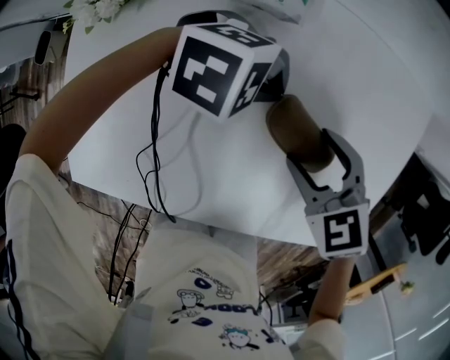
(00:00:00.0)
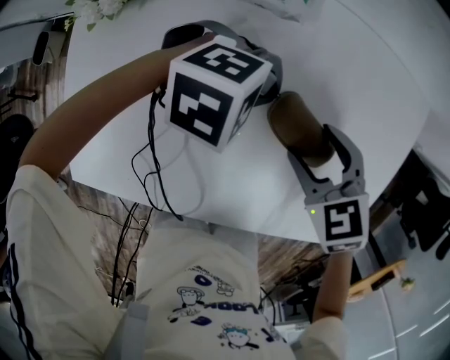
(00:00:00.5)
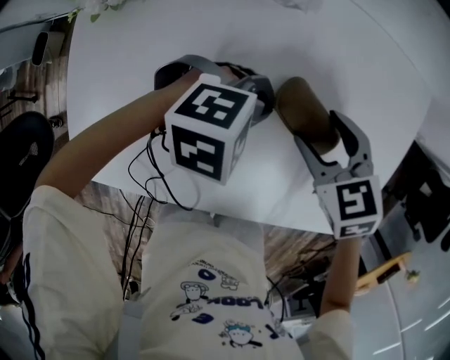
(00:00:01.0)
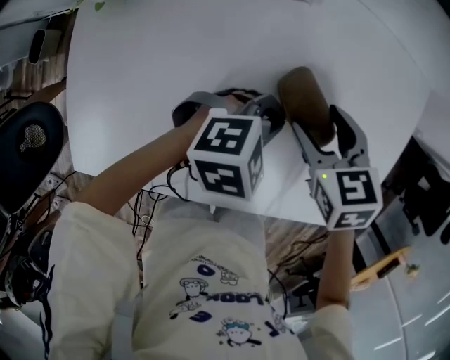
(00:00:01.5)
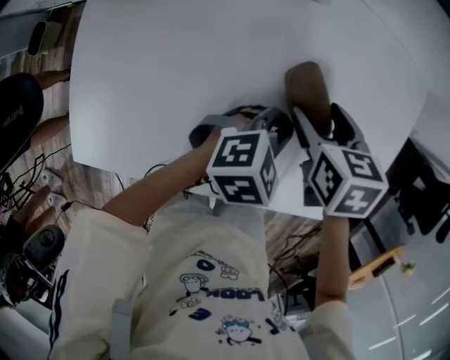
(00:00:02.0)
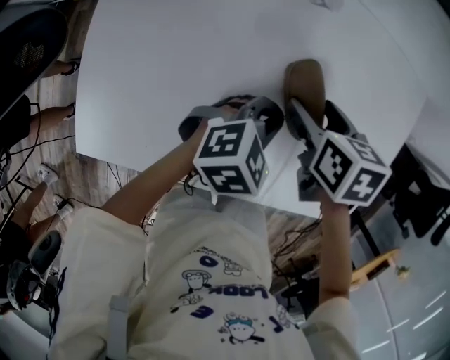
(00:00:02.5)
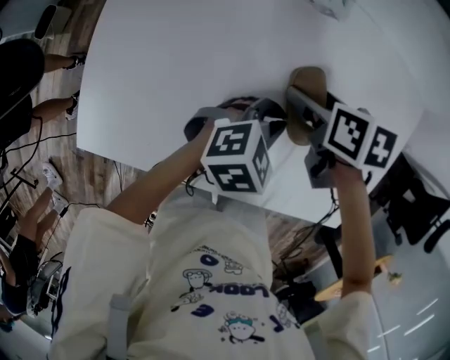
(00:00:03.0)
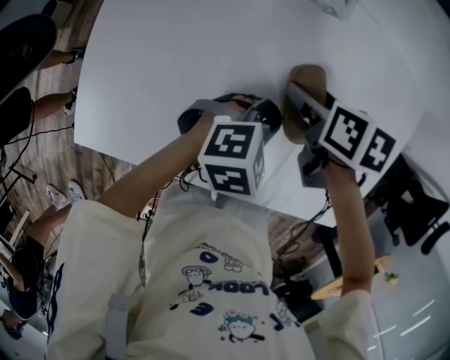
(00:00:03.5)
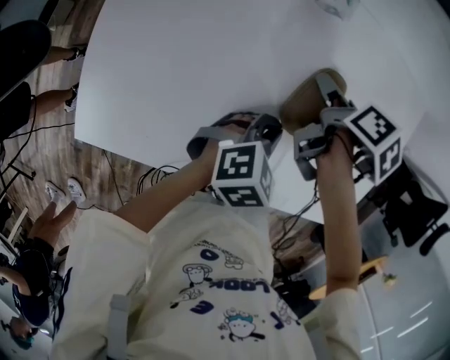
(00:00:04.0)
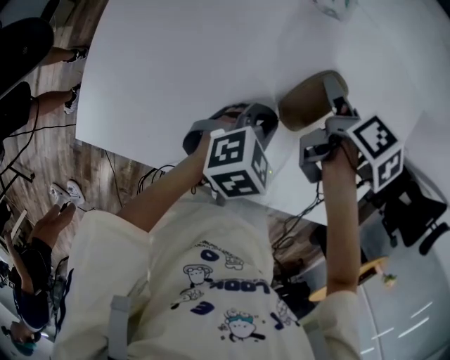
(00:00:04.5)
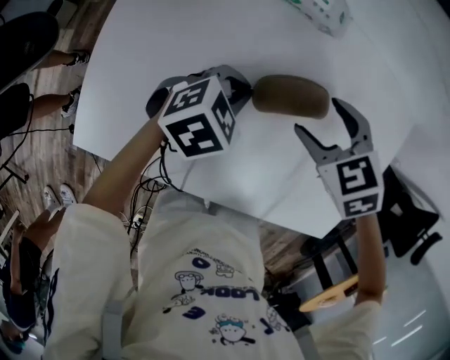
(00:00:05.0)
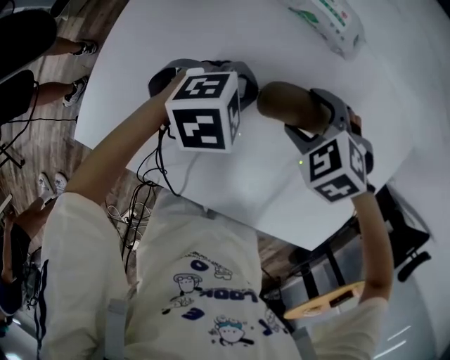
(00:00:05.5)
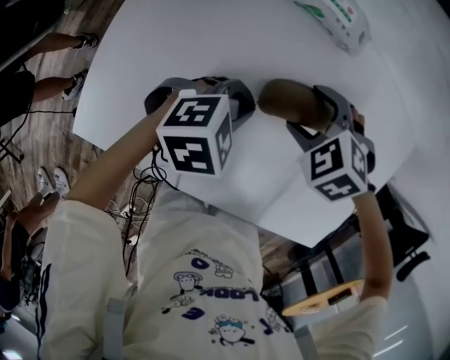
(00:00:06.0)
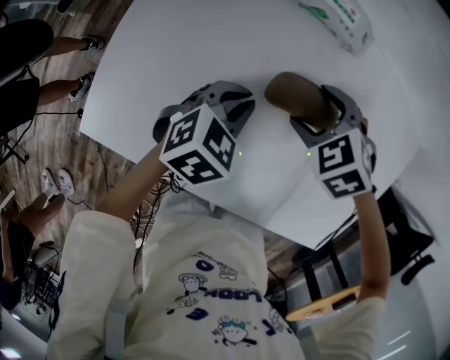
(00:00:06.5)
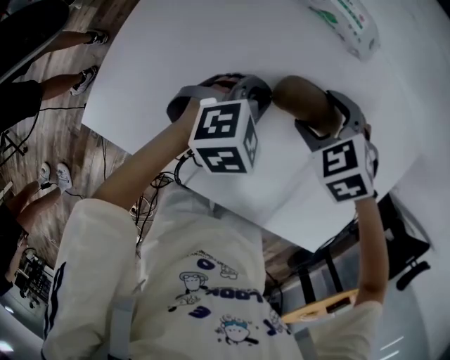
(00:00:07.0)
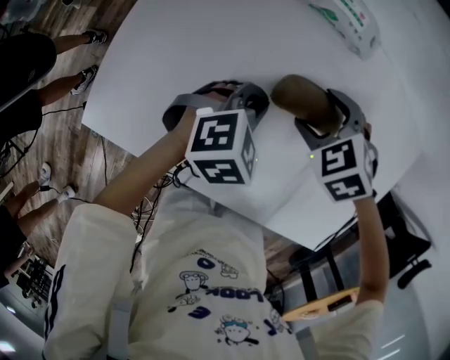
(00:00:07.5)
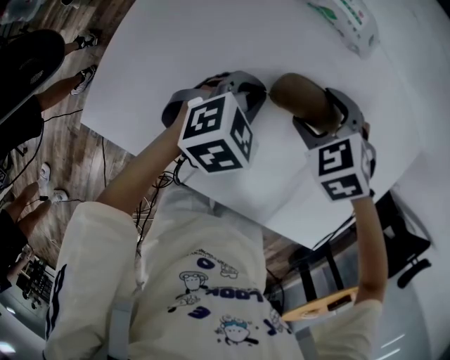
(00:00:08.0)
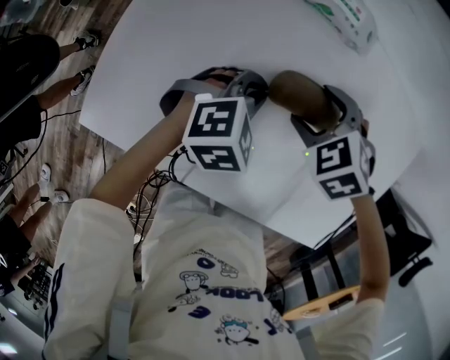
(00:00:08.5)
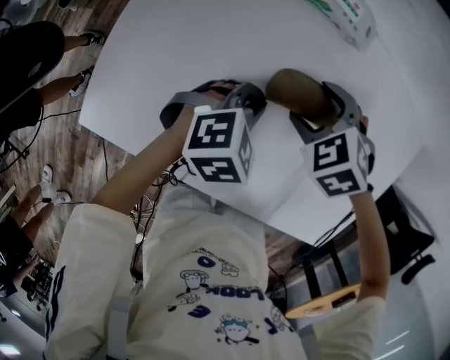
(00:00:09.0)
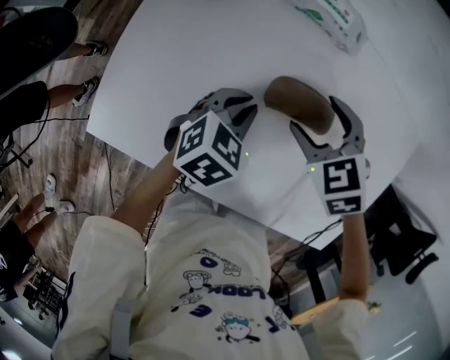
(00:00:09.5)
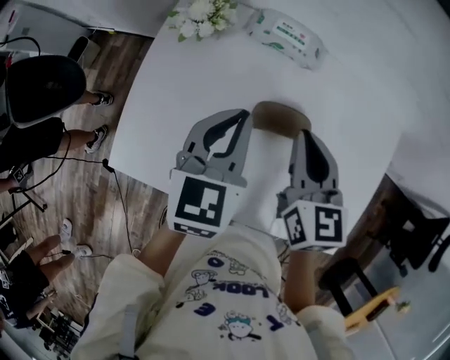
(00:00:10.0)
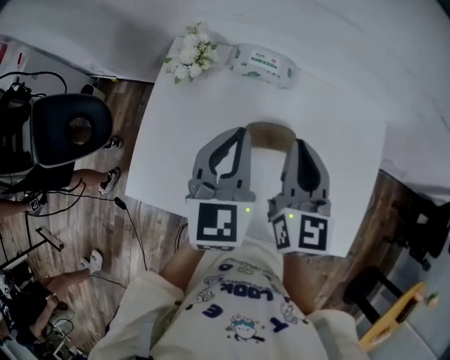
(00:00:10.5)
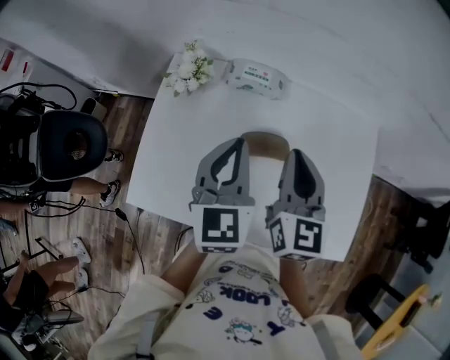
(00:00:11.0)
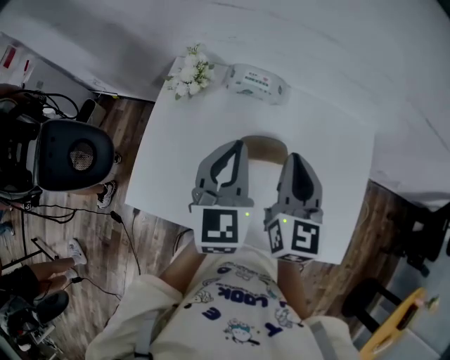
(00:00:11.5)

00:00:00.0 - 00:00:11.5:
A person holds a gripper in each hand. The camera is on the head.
00:00:00.0 - 00:00:02.0: The right gripper swivels roughly 40 degrees; the left gripper shifts by some 15 cm, and turns by some 50 degrees.
00:00:02.0 - 00:00:04.0: The right gripper shifts by some 5 cm, and rolls clockwise, seen from behind, by about 50 degrees; the left gripper moves to the left, some 5 cm.
00:00:04.0 - 00:00:06.0: The left gripper moves approximately 10 cm. The right gripper ends up approximately 10 cm from where it was, and twists roughly 120 degrees counterclockwise, seen from behind.
00:00:07.5 - 00:00:09.5: The left gripper turns by about 20 degrees.
00:00:09.5 - 00:00:11.5: The two grippers go about 25 cm upward. The left gripper angles its fingers upward, by roughly 30 degrees. Meanwhile the right gripper tilts its fingers about 50 degrees upward, and closes.

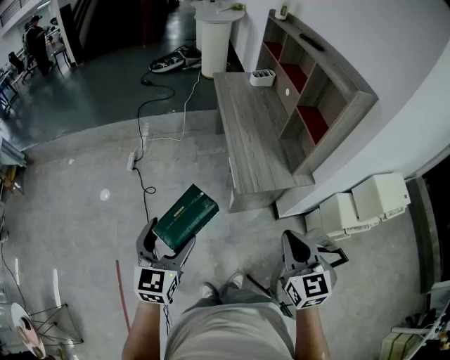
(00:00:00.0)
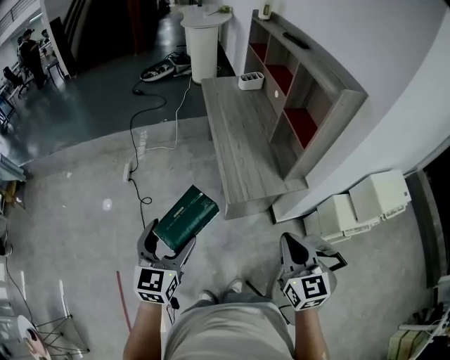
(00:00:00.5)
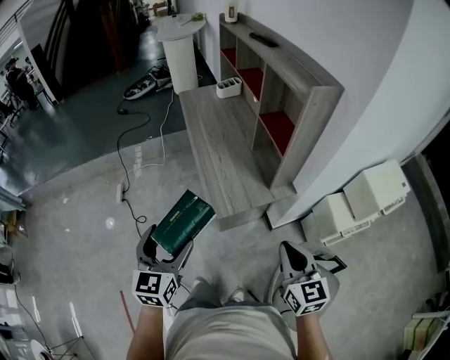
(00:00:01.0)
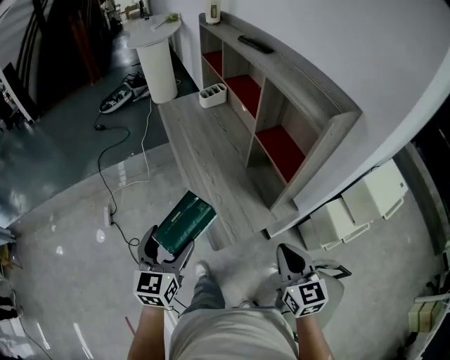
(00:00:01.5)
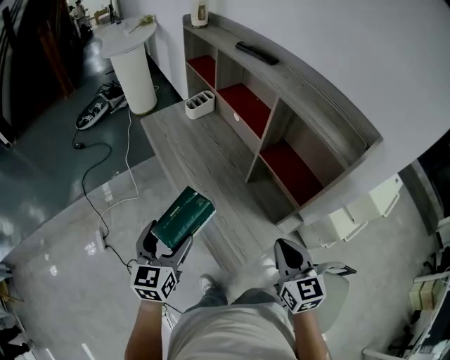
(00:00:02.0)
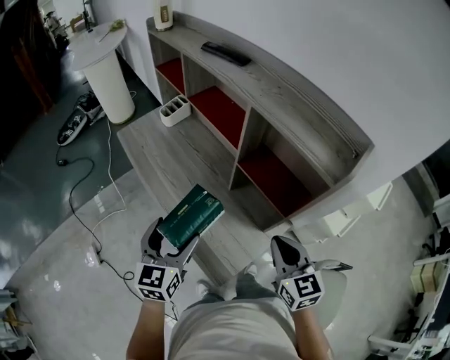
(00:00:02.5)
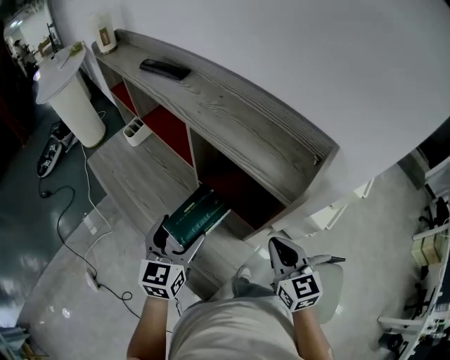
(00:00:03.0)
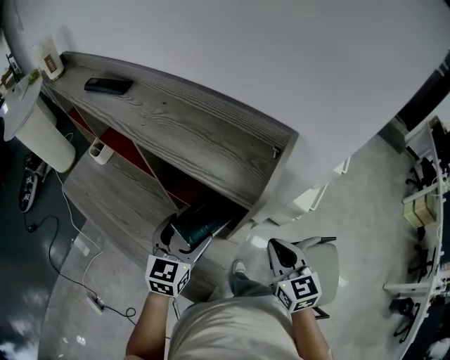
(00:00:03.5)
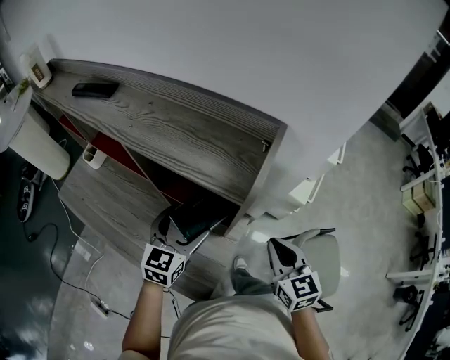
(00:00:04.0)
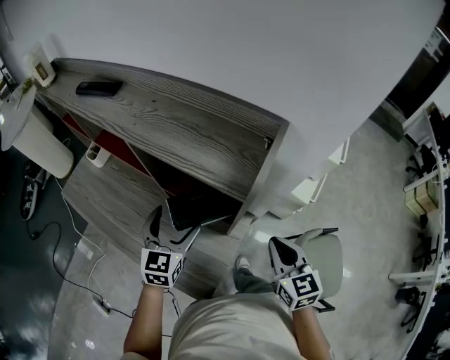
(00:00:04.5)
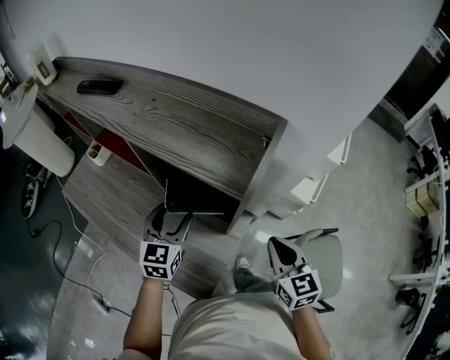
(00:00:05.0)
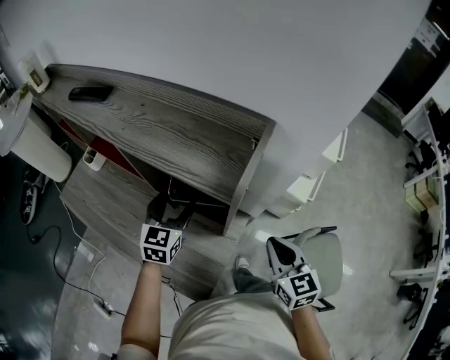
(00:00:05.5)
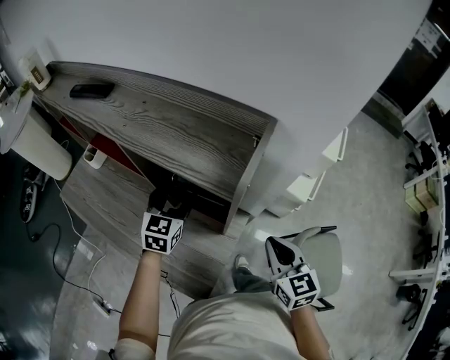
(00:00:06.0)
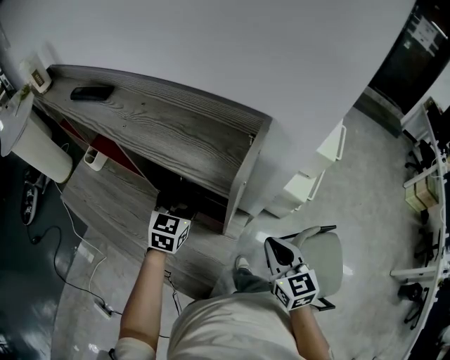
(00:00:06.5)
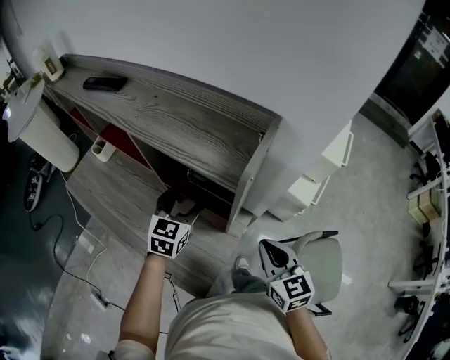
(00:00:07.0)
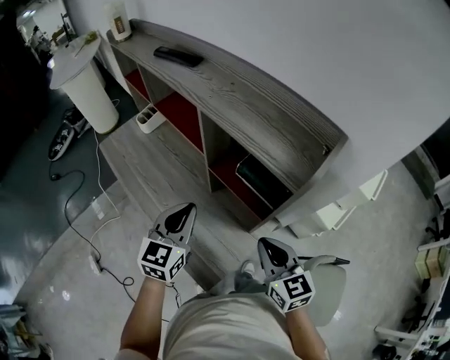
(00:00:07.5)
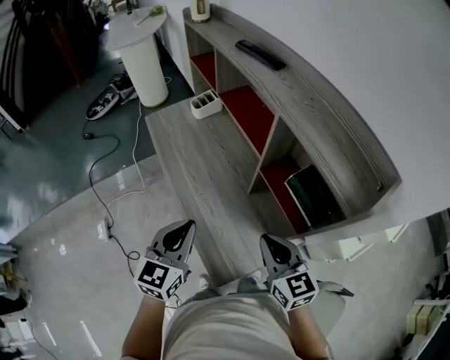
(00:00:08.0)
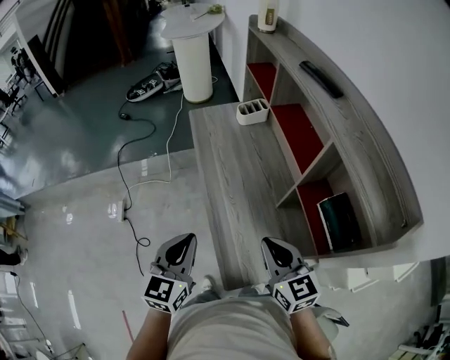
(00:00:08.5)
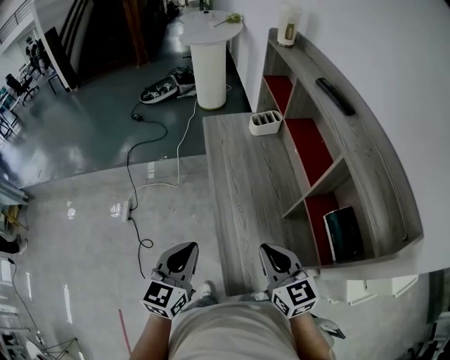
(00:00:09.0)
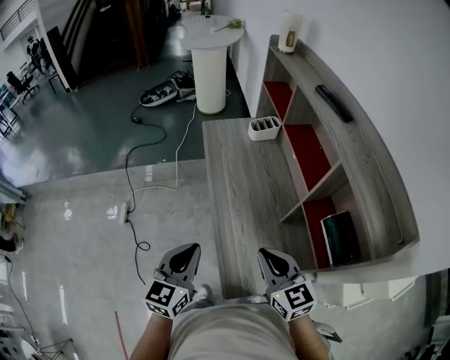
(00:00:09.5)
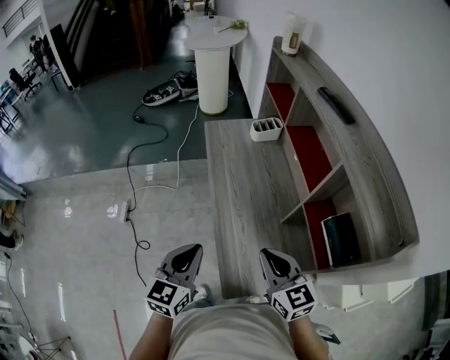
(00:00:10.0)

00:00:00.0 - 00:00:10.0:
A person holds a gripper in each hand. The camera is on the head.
00:00:00.0 - 00:00:02.0: The grippers both shift forward by about 40 cm. The left gripper changes its angle by some 20 degrees; the right gripper changes its angle by approximately 20 degrees.
00:00:02.0 - 00:00:04.0: The right gripper shifts by some 20 cm, and turns by approximately 30 degrees. Meanwhile the left gripper ends up about 40 cm from where it was, and swivels approximately 50 degrees.
00:00:04.0 - 00:00:06.0: The left gripper moves forward, about 10 cm, and closes up.
00:00:06.0 - 00:00:08.0: The left gripper shifts by some 30 cm, changes its angle by some 30 degrees, and closes; the right gripper shifts by roughly 25 cm, and swivels roughly 40 degrees.
00:00:08.0 - 00:00:10.0: The left gripper travels to the left and backward by some 15 cm. The right gripper goes about 10 cm to the left, and swivels approximately 20 degrees.

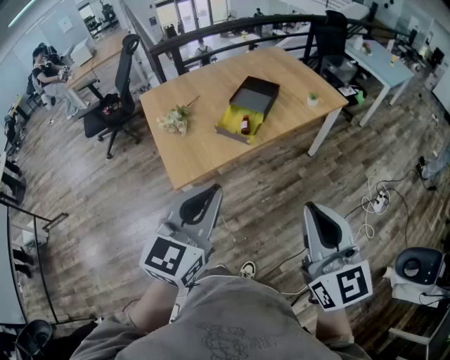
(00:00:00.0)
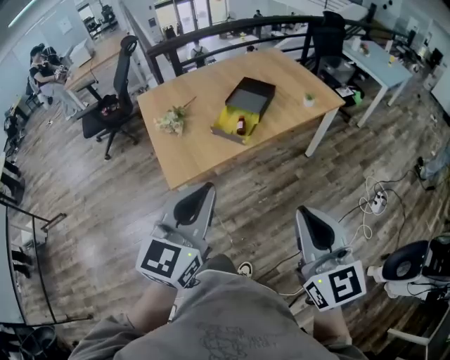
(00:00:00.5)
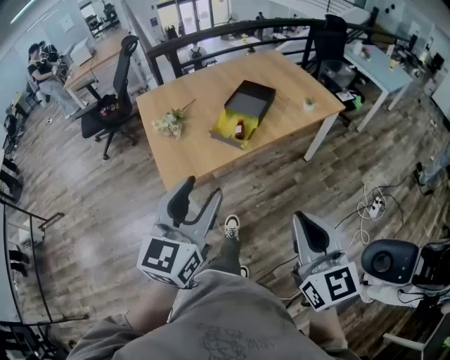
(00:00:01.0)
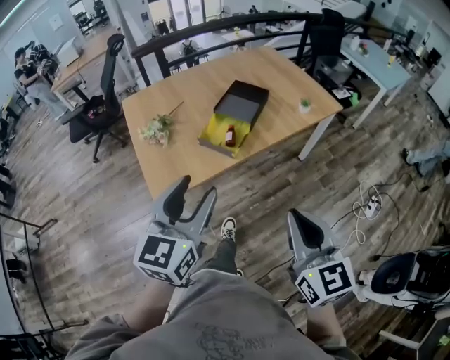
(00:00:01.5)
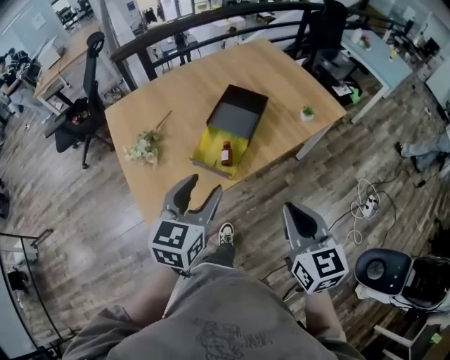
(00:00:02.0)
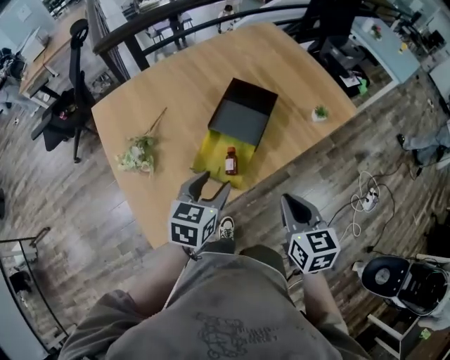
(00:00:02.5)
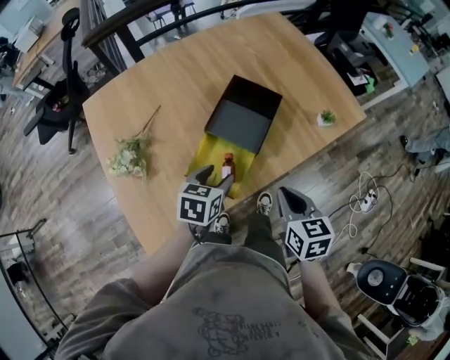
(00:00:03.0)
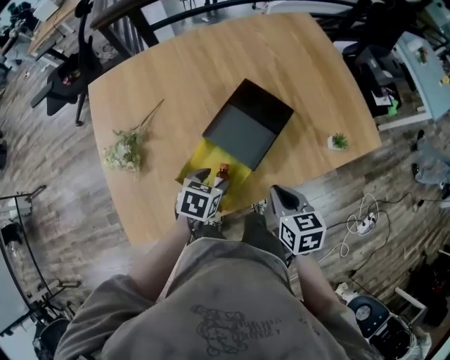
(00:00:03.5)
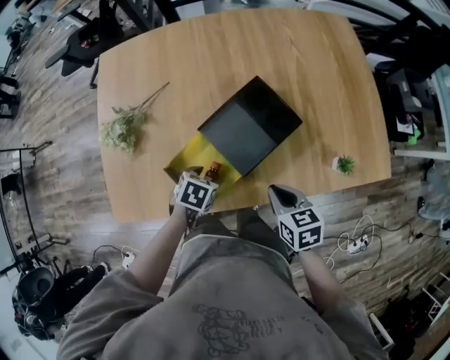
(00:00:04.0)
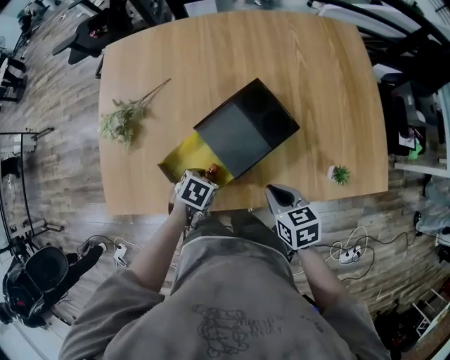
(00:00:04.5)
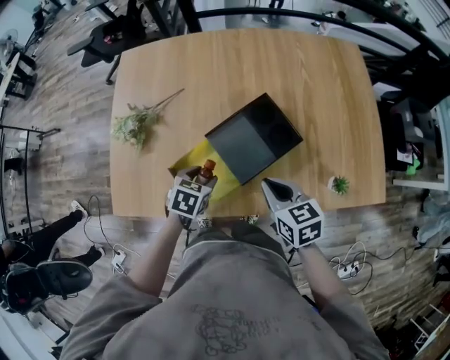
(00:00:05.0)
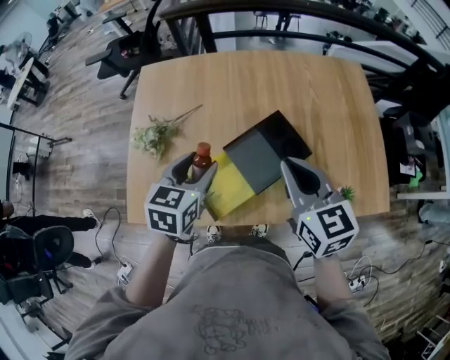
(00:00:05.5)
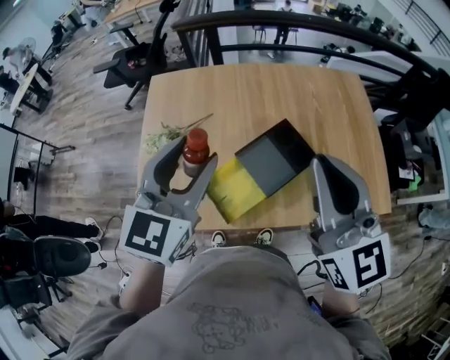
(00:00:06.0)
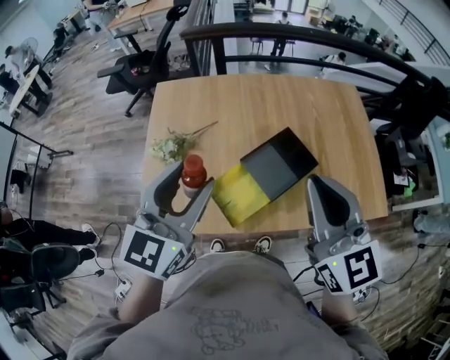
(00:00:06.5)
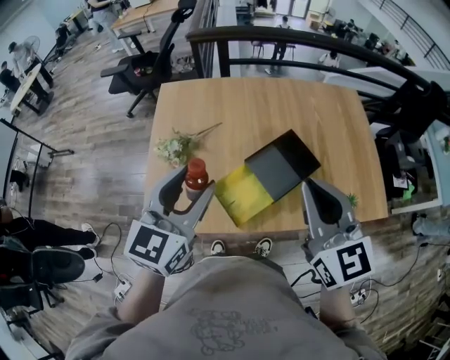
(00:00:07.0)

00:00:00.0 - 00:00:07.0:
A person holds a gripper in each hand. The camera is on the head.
00:00:00.0 - 00:00:02.0: Both grippers travel together forward, about 30 cm. The left gripper opens up.
00:00:02.0 - 00:00:03.5: The left gripper goes approximately 35 cm downward and forward, and tilts its fingers about 40 degrees downward. The right gripper travels forward and downward by roughly 35 cm, and swivels roughly 30 degrees.
00:00:03.5 - 00:00:05.0: The right gripper moves some 10 cm, and changes its angle by approximately 30 degrees.
00:00:05.0 - 00:00:07.0: Both grippers move upward, some 30 cm. The left gripper tips its fingers upward by about 50 degrees. The right gripper swivels approximately 40 degrees.
